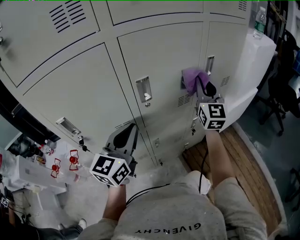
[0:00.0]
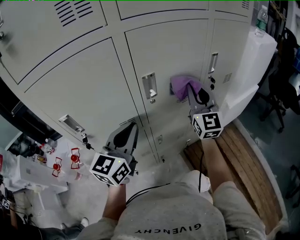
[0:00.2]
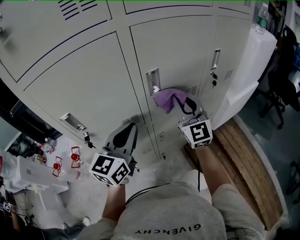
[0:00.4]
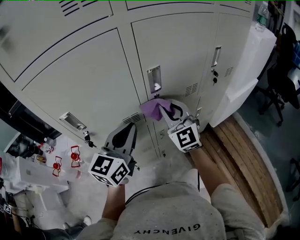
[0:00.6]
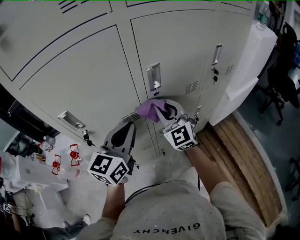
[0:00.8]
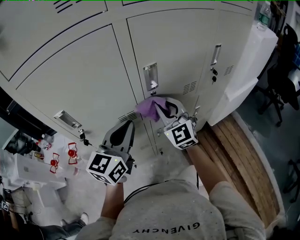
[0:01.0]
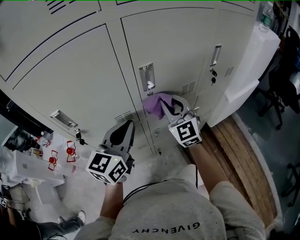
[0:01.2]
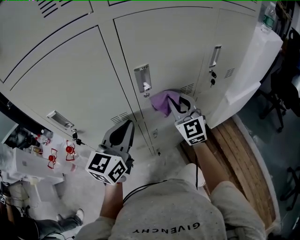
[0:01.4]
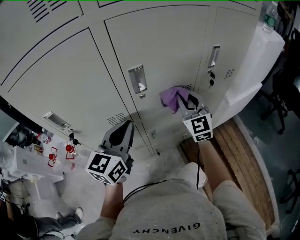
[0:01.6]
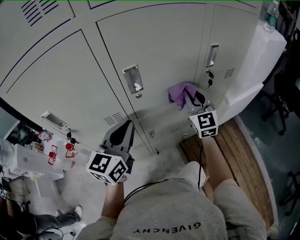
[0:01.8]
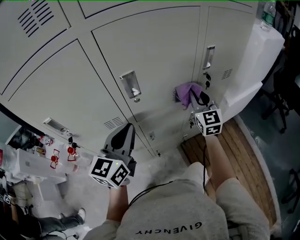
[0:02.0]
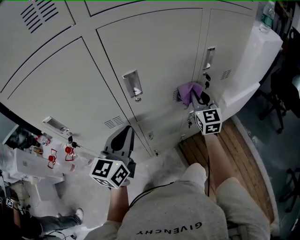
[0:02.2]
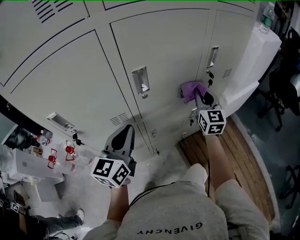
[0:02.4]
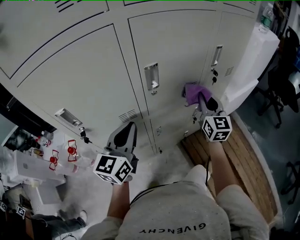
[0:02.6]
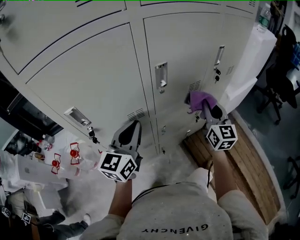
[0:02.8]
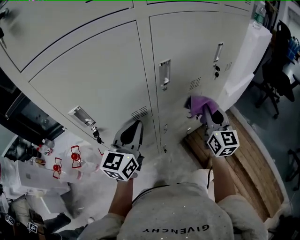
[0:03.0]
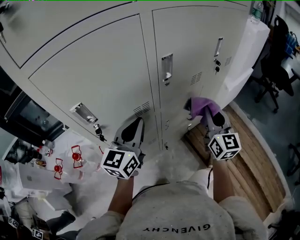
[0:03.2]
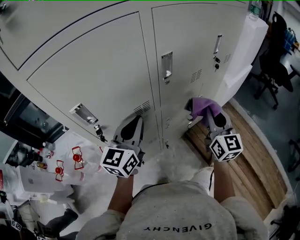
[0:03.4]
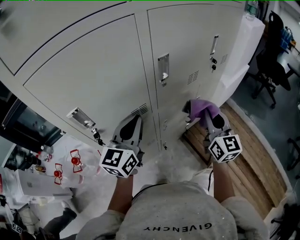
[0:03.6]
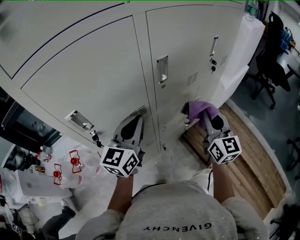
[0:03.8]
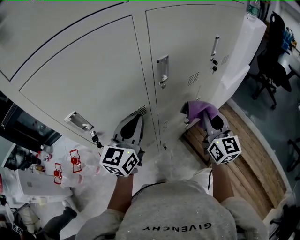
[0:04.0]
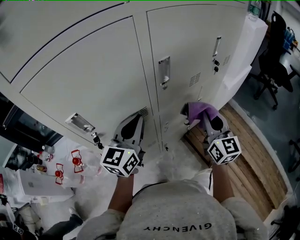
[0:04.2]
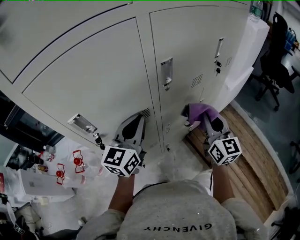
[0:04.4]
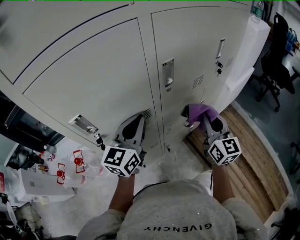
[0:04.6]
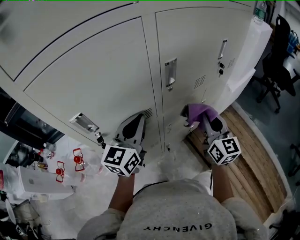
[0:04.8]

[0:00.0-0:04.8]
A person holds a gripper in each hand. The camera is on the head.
0.0 to 1.6 s: The right gripper heads downward and to the left, covering about 15 cm, and swivels about 20 degrees.
1.6 to 3.2 s: The left gripper goes approximately 5 cm to the left, while the right gripper moves backward, approximately 15 cm, and turns by some 30 degrees.
3.2 to 4.8 s: There are only small adjustments of the grippers.

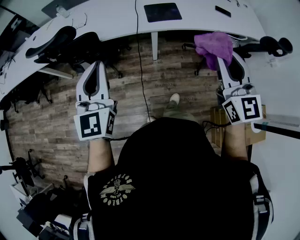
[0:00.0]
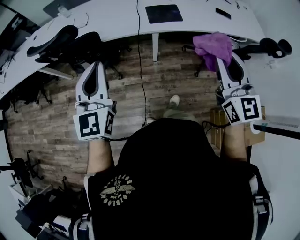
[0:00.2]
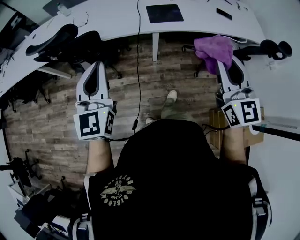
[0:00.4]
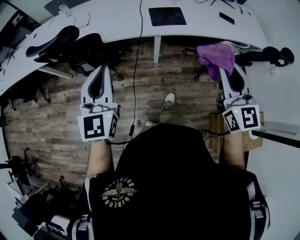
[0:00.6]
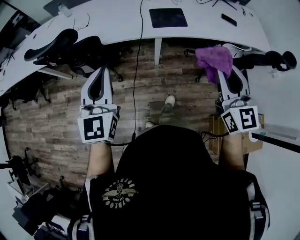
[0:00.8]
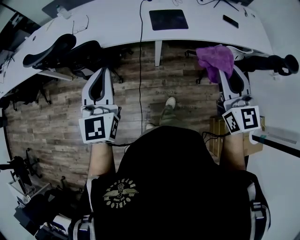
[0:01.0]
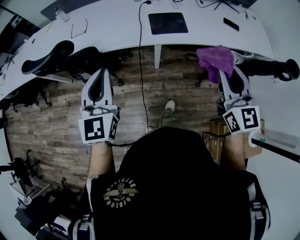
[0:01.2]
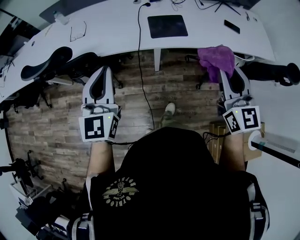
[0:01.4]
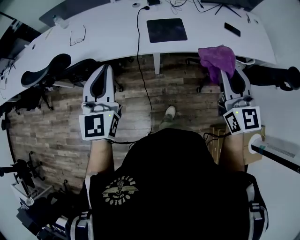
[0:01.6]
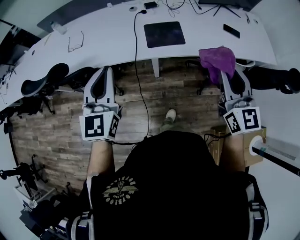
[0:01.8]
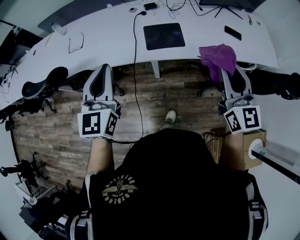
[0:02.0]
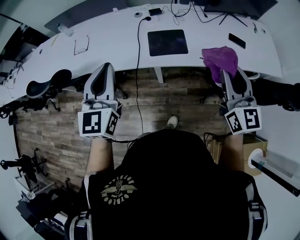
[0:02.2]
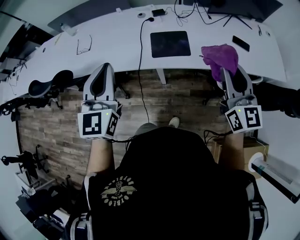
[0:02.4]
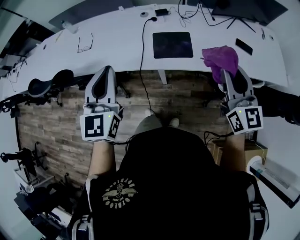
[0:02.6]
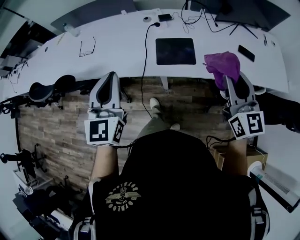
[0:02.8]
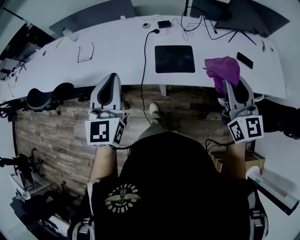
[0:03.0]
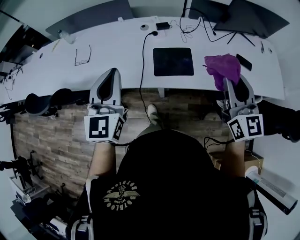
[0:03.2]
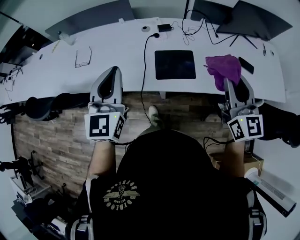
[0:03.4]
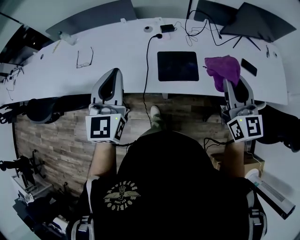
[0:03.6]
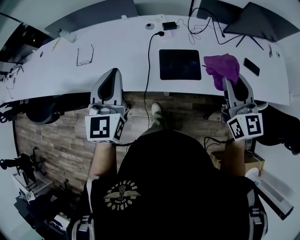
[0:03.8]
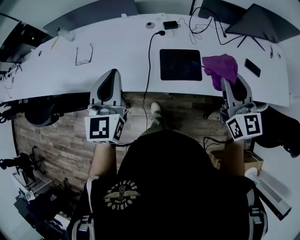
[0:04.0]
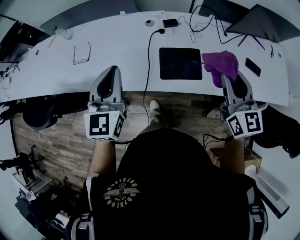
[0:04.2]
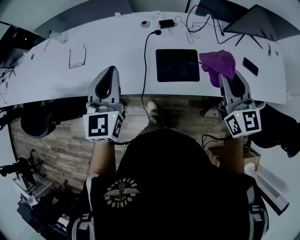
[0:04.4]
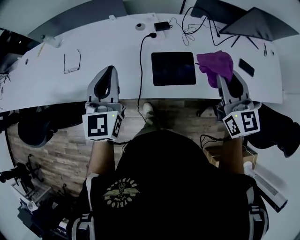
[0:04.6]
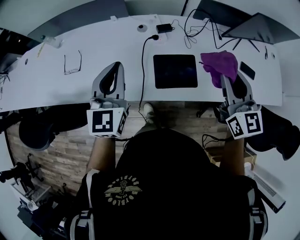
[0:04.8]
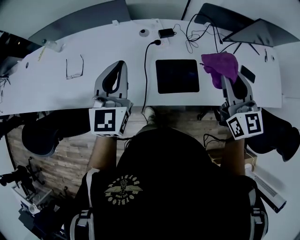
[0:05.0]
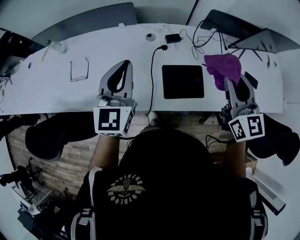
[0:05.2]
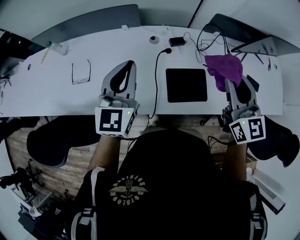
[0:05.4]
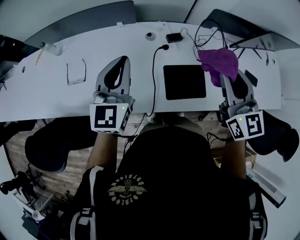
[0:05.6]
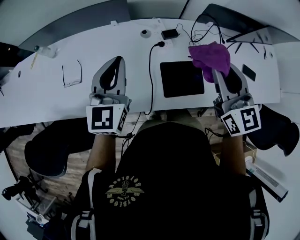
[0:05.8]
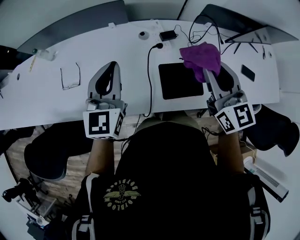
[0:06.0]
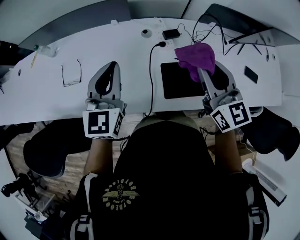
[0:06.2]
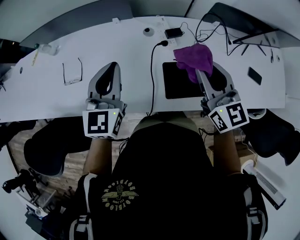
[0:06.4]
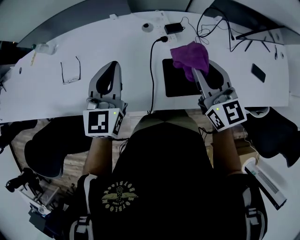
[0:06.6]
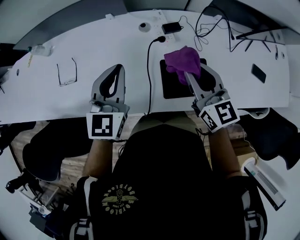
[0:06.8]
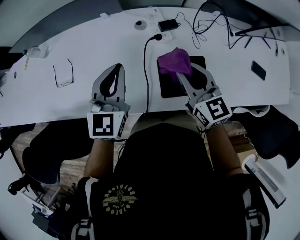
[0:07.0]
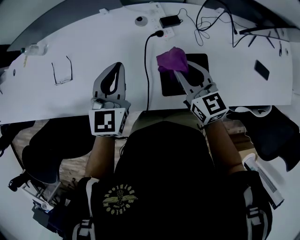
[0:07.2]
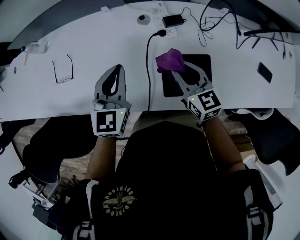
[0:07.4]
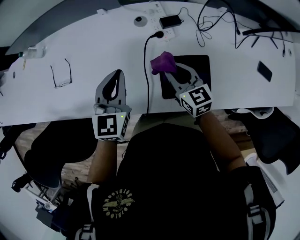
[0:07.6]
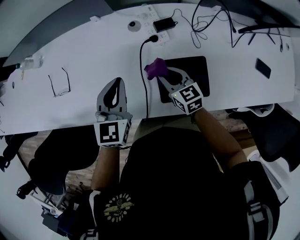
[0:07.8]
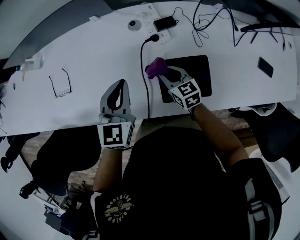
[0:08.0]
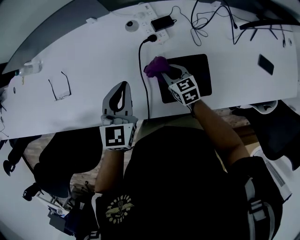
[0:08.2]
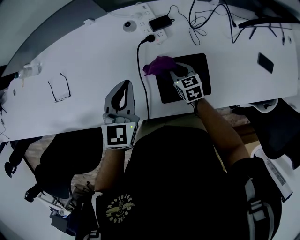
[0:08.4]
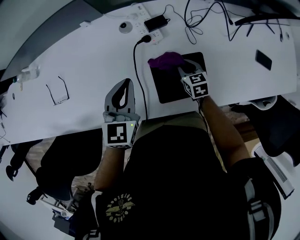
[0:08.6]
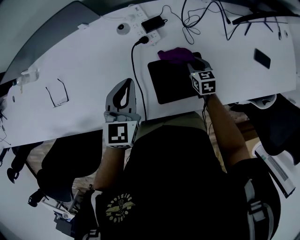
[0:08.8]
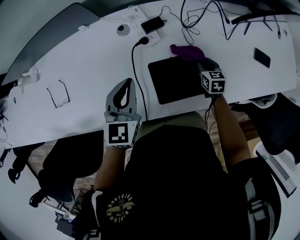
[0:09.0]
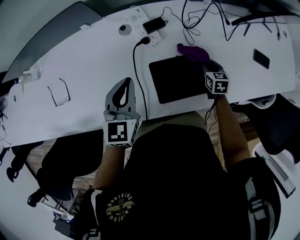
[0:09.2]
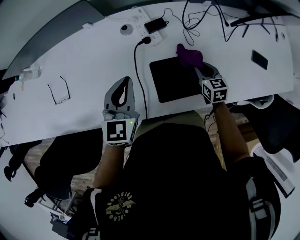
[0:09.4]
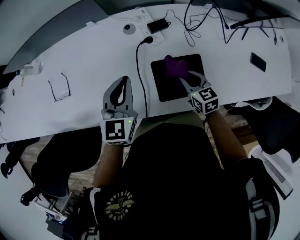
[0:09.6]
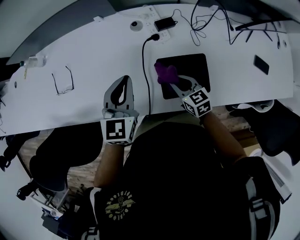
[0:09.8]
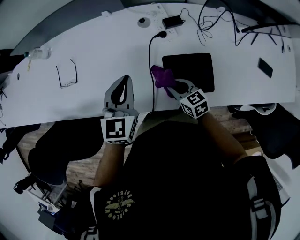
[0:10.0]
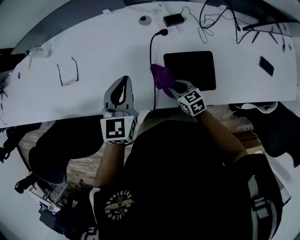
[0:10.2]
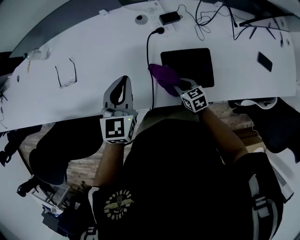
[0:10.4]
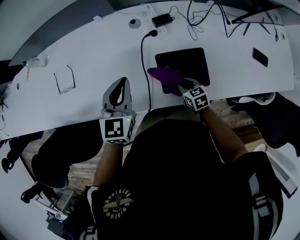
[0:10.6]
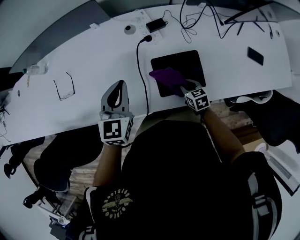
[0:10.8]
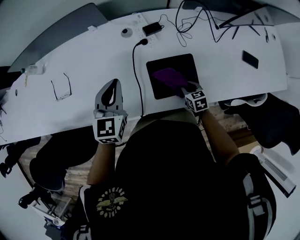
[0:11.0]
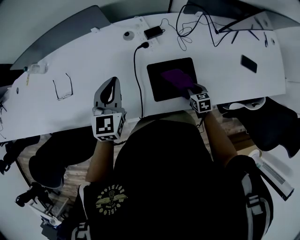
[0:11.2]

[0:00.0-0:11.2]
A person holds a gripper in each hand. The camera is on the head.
0.0 to 1.6 s: Both grippers travel together forward, about 15 cm.
1.6 to 3.2 s: The grippers both shift forward by approximately 20 cm.
3.2 to 4.8 s: Both grippers move forward, about 15 cm.
4.8 to 6.4 s: The left gripper travels forward and to the left by about 10 cm. The right gripper goes roughly 15 cm to the left and forward.
6.4 to 8.0 s: The right gripper travels downward by some 30 cm, and changes its angle by about 30 degrees. The left gripper heads downward and to the right, covering some 15 cm.
8.0 to 9.6 s: The right gripper travels to the right by about 10 cm.
9.6 to 11.2 s: The right gripper goes about 15 cm downward, to the right and backward.

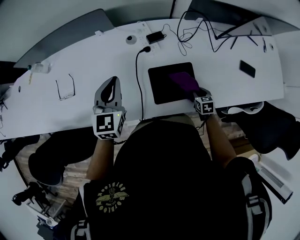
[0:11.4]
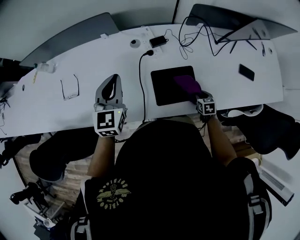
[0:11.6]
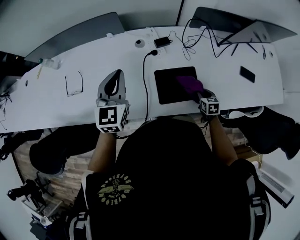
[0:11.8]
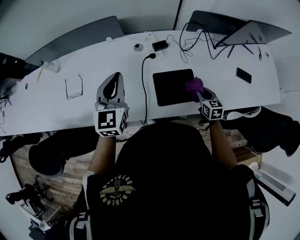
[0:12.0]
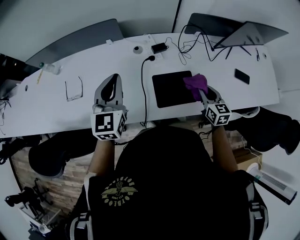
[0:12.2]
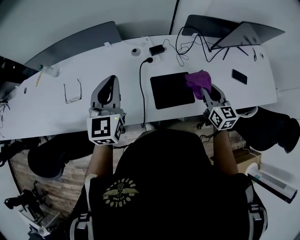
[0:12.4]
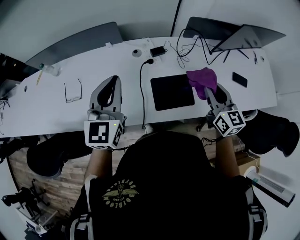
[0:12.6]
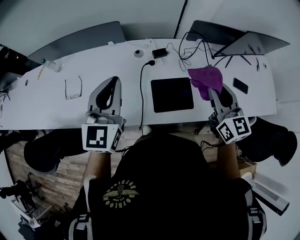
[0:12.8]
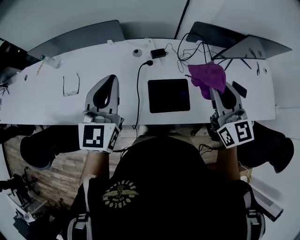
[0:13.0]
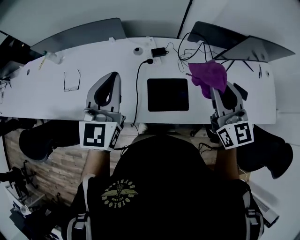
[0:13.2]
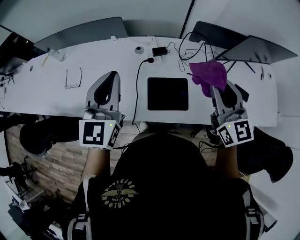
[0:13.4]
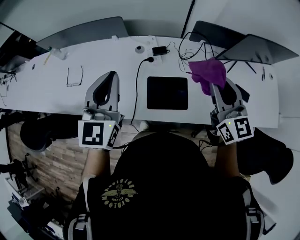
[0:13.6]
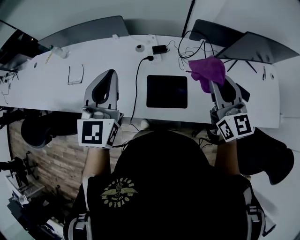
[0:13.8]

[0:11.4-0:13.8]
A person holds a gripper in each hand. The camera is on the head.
11.4 to 12.6 s: The left gripper goes approximately 15 cm upward. The right gripper moves upward, approximately 35 cm, and points its fingers approximately 40 degrees further upward.
12.6 to 13.8 s: The left gripper heads to the right, covering roughly 5 cm, while the right gripper shifts about 10 cm upward.

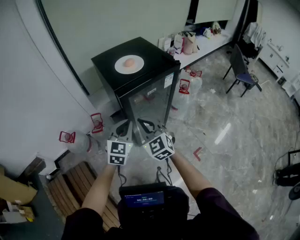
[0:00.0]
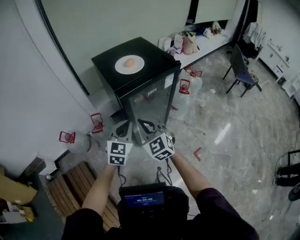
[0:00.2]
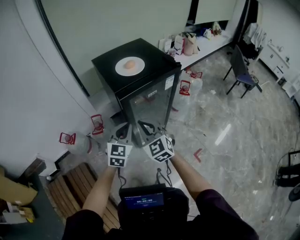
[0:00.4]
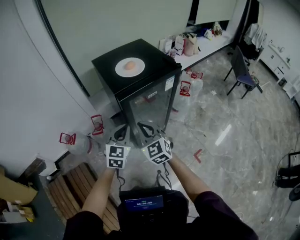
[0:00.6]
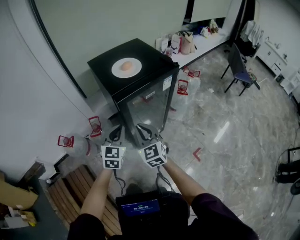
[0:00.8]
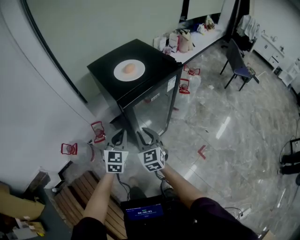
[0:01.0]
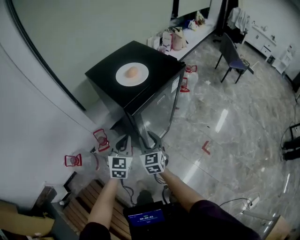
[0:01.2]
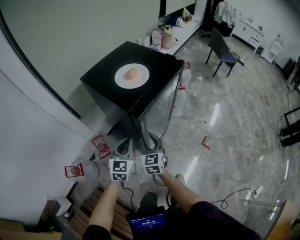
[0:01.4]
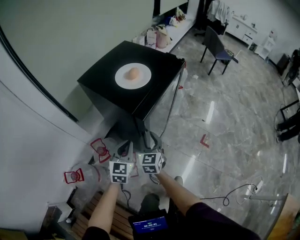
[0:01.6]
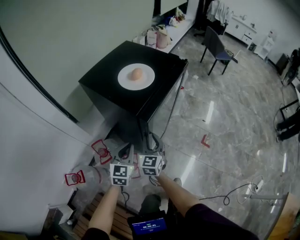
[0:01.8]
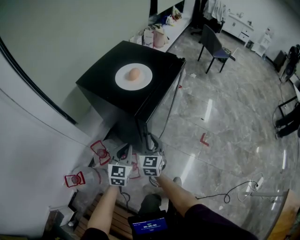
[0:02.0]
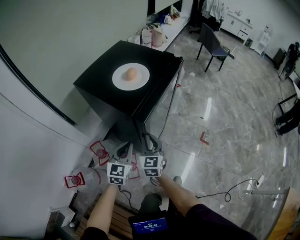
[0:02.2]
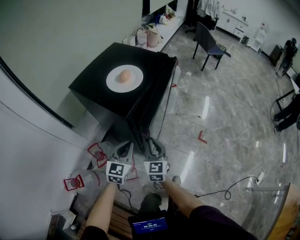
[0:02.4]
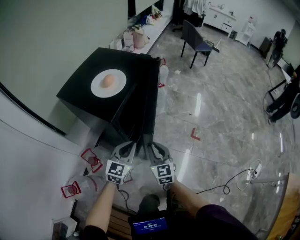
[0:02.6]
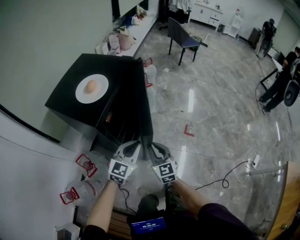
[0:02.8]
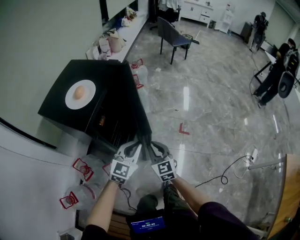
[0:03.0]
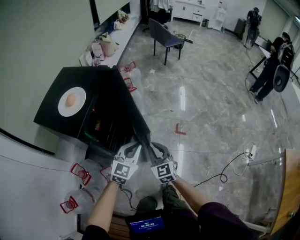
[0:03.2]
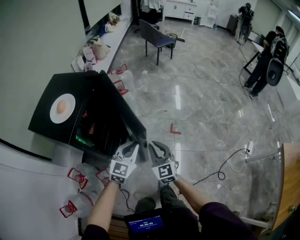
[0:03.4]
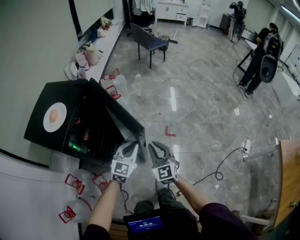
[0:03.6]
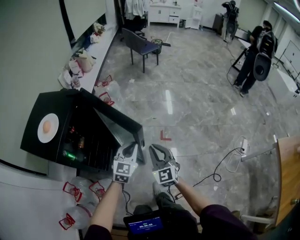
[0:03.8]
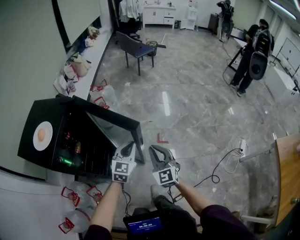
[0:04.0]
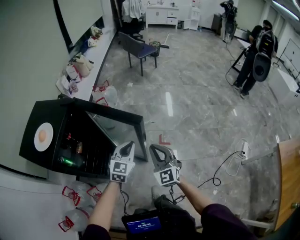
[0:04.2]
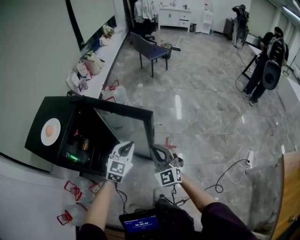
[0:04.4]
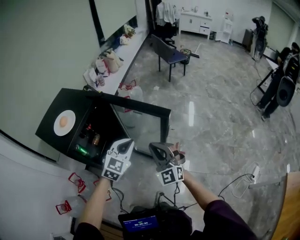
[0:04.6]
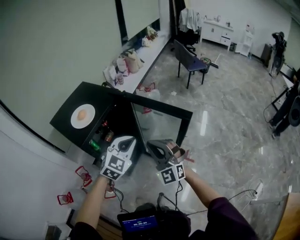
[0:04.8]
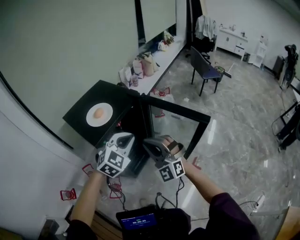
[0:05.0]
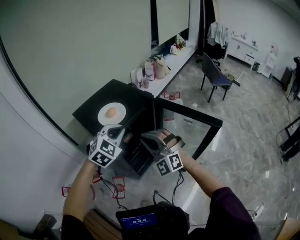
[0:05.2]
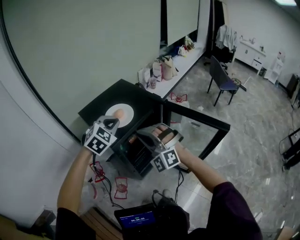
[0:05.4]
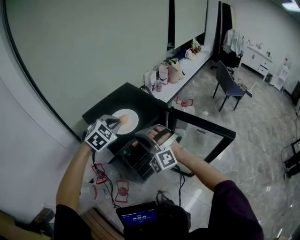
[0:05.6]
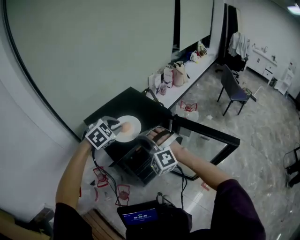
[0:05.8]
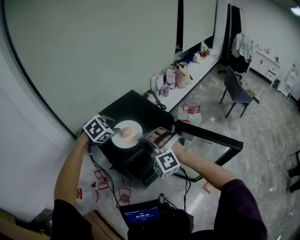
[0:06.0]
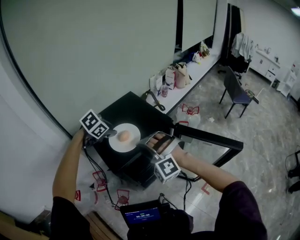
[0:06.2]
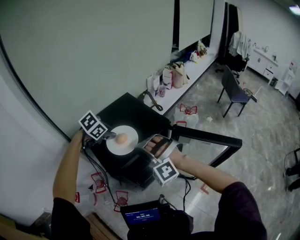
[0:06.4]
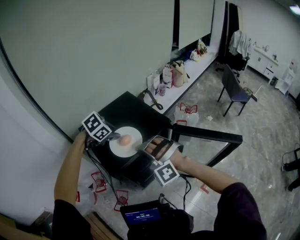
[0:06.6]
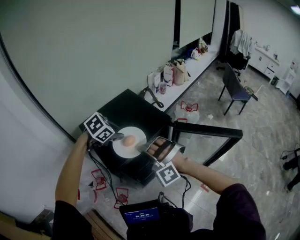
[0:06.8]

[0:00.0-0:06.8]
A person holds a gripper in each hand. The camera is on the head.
0.0 to 1.4 s: The right gripper shifts some 15 cm downward, turns by some 50 degrees, and opens up, while the left gripper changes place by approximately 15 cm.
1.4 to 2.8 s: Both grippers move to the right, some 15 cm. The left gripper changes its angle by approximately 40 degrees.
2.8 to 4.0 s: The left gripper shifts about 30 cm to the right and forward. The right gripper heads to the right, covering roughly 25 cm, and rotates about 20 degrees.
4.0 to 5.4 s: The right gripper shifts by some 40 cm, and changes its angle by about 80 degrees. The left gripper changes place by roughly 50 cm, and rotates some 40 degrees.
5.4 to 6.8 s: The left gripper heads forward, covering approximately 10 cm, rotates some 40 degrees, and opens its fingers, while the right gripper shifts by approximately 5 cm, and swivels approximately 30 degrees.
